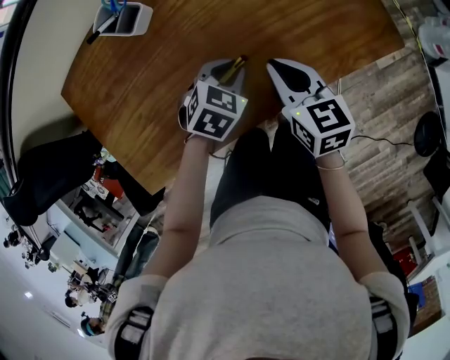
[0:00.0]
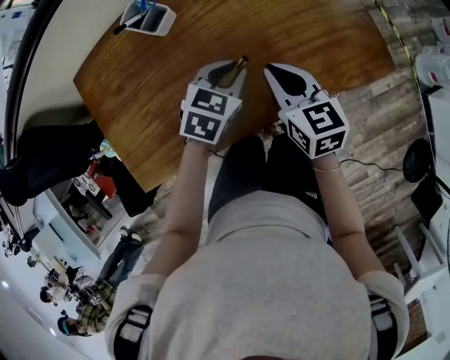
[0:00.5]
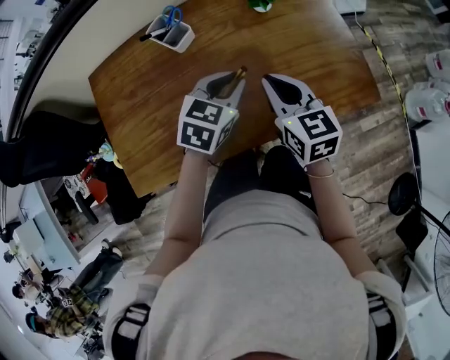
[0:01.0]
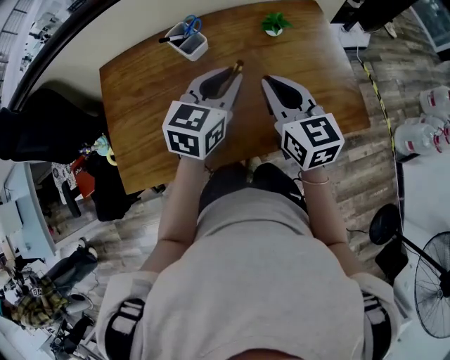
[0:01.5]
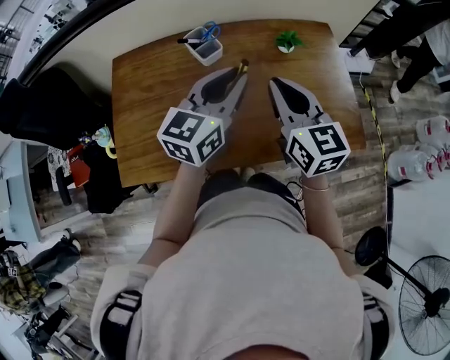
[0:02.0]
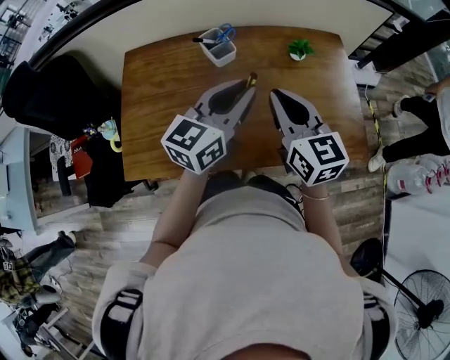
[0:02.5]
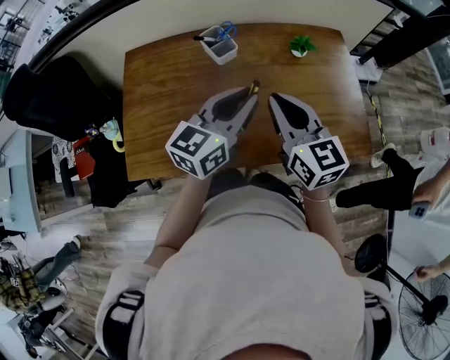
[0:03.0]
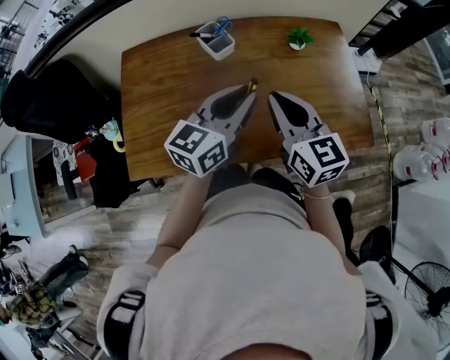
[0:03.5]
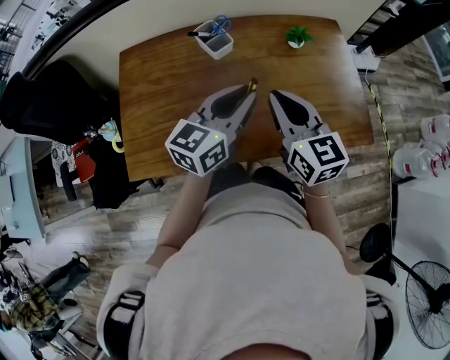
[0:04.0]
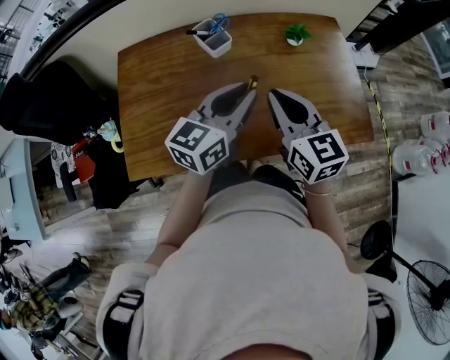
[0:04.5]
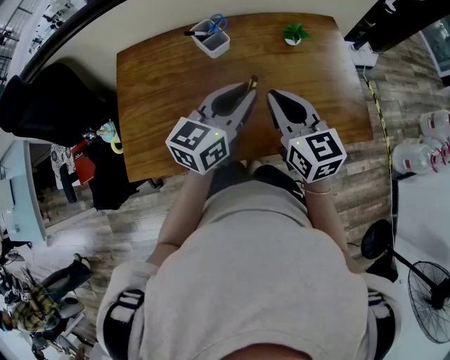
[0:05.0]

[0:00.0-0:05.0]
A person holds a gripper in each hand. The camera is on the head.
0:00.0 to 0:02.5: Both grippers move upward, roughly 25 cm. The left gripper tips its fingers upward by some 60 degrees. The right gripper swivels roughly 30 degrees.
0:02.5 to 0:05.0: The grippers make only small movements.

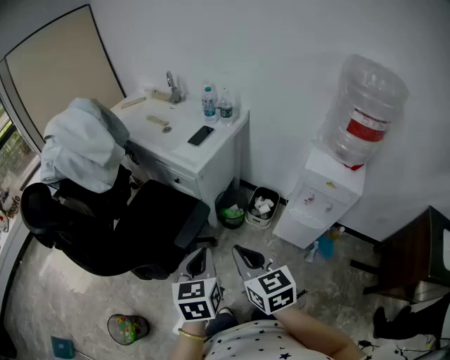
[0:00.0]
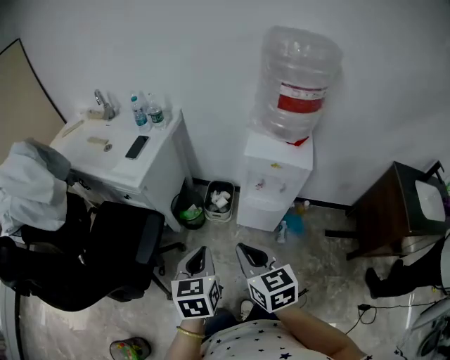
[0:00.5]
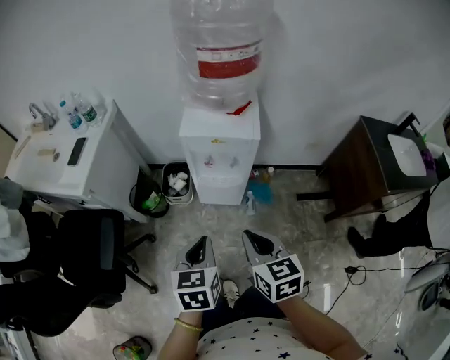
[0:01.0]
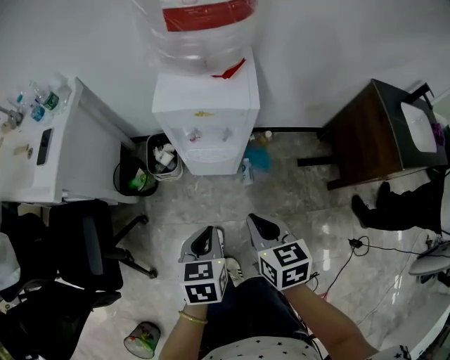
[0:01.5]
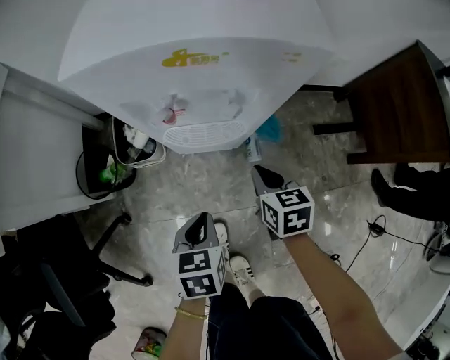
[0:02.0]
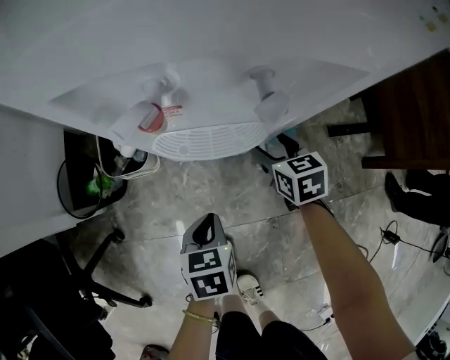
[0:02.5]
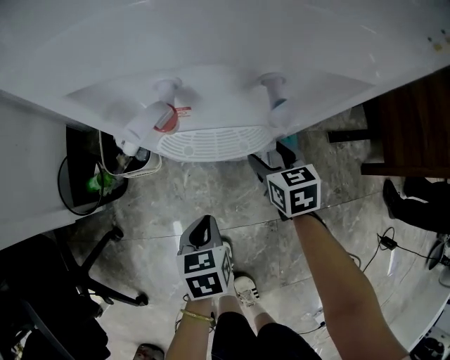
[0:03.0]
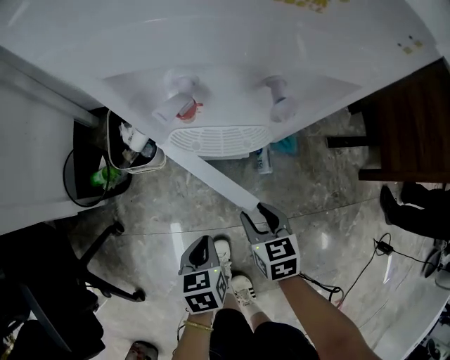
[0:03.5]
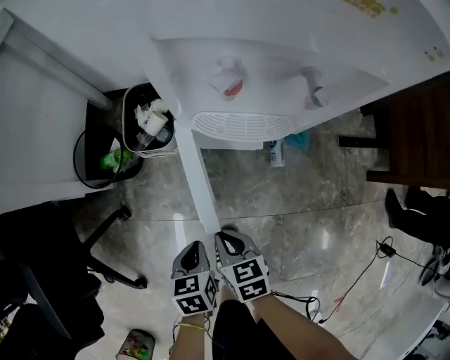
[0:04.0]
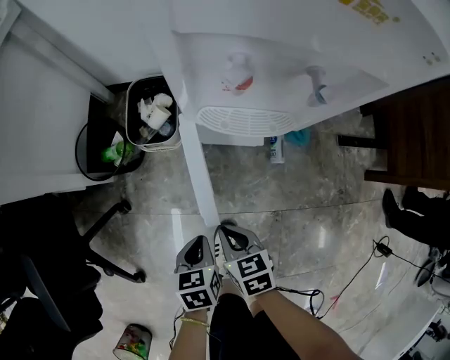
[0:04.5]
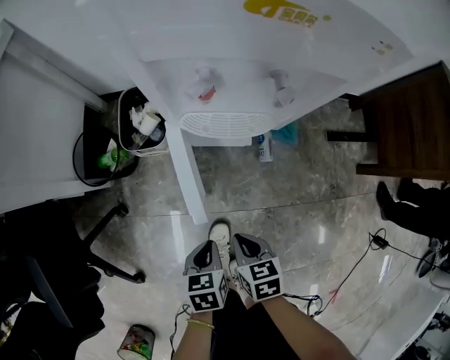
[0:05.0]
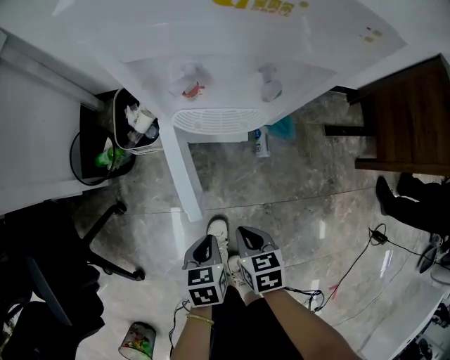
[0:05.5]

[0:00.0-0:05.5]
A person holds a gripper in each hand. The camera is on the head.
0:00.0 to 0:02.0: The left gripper moves downward, about 40 cm, and turns by about 50 degrees, while the right gripper changes place by about 70 cm, and rotates approximately 50 degrees.
0:02.0 to 0:03.5: The left gripper goes roughly 15 cm downward. The right gripper moves downward, backward and to the left, some 15 cm, and opens up.
0:03.5 to 0:05.5: The right gripper shifts some 10 cm backward, moves approximately 15 cm to the left and comes back, and closes; the left gripper moves backward, roughly 5 cm.

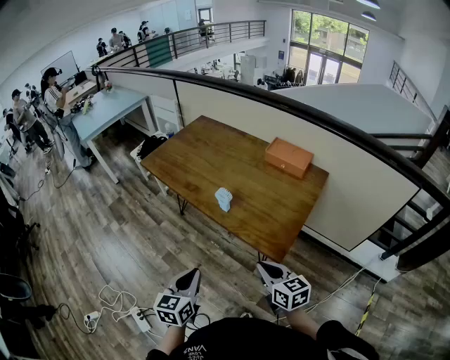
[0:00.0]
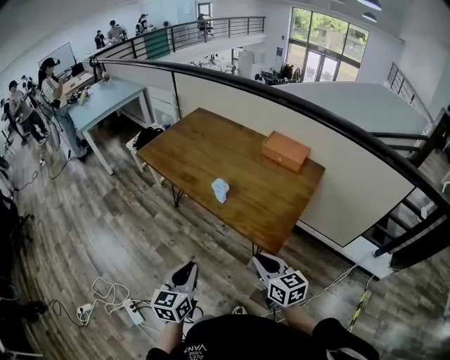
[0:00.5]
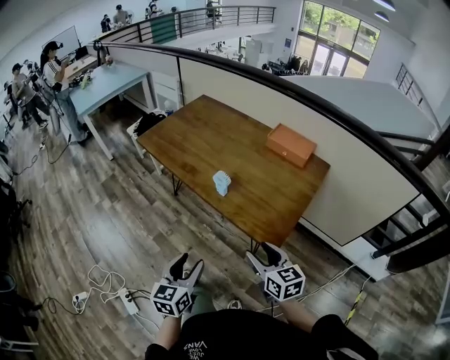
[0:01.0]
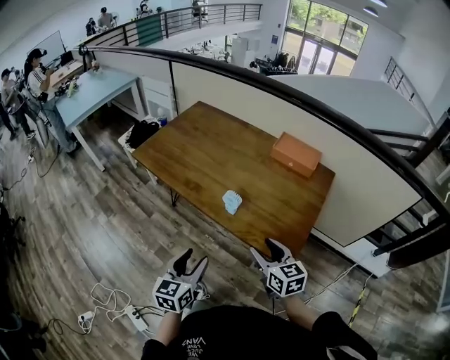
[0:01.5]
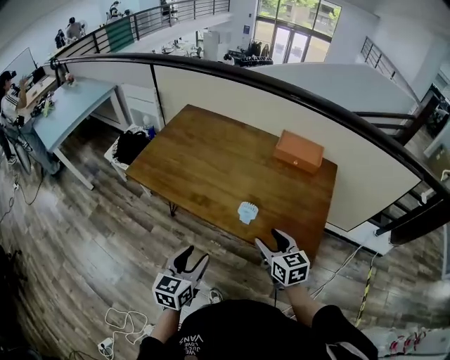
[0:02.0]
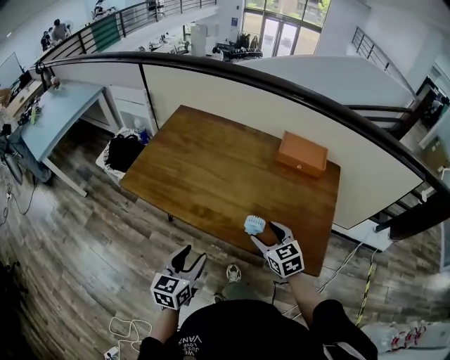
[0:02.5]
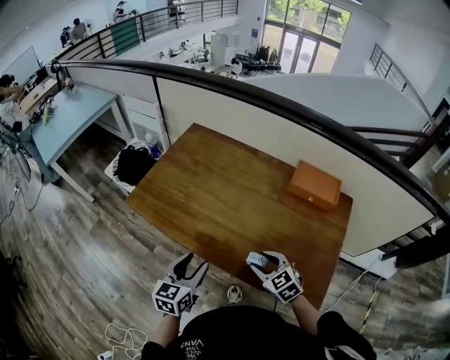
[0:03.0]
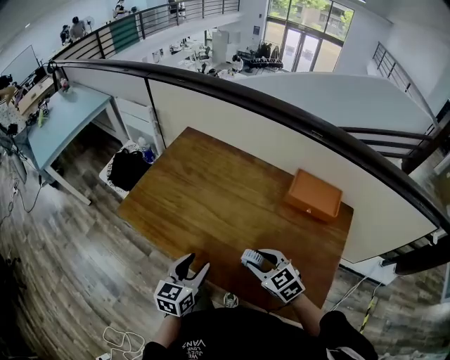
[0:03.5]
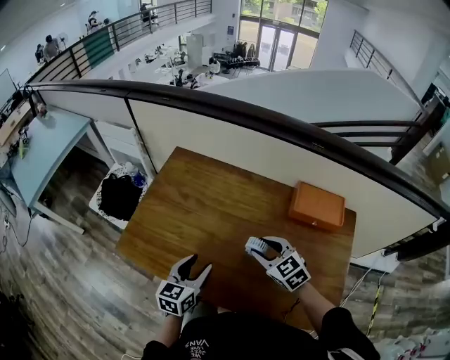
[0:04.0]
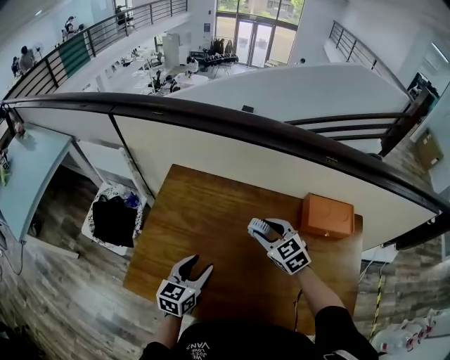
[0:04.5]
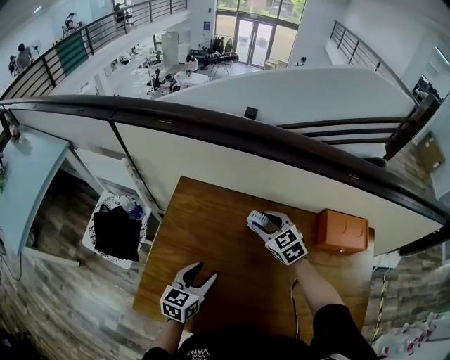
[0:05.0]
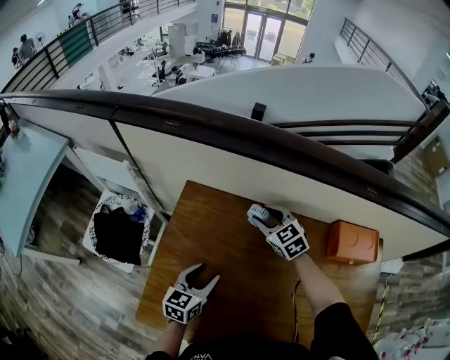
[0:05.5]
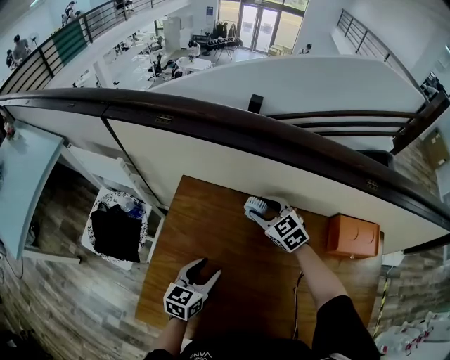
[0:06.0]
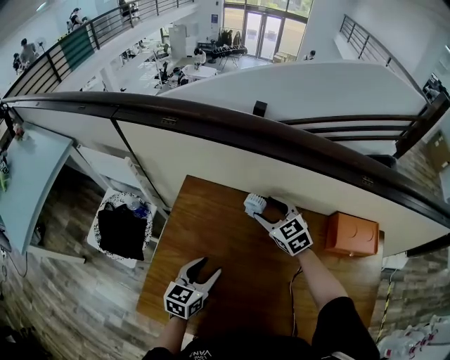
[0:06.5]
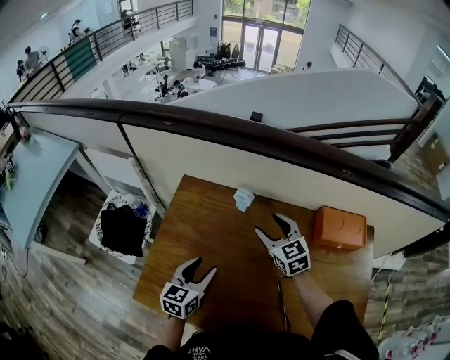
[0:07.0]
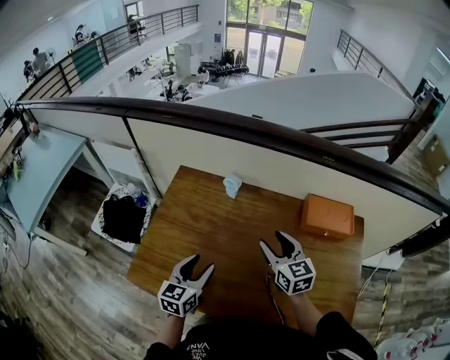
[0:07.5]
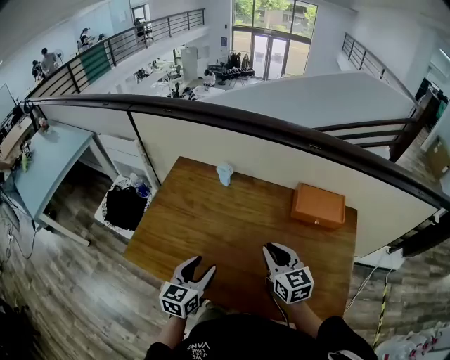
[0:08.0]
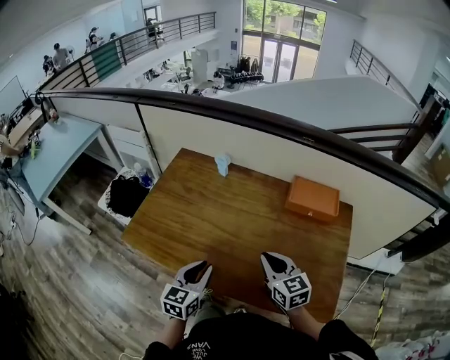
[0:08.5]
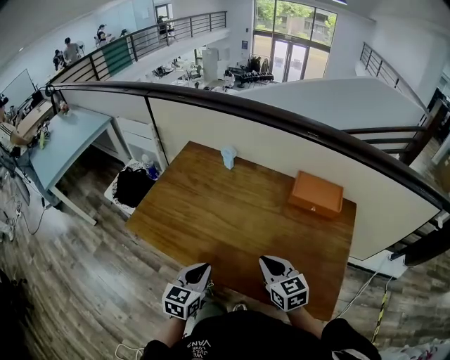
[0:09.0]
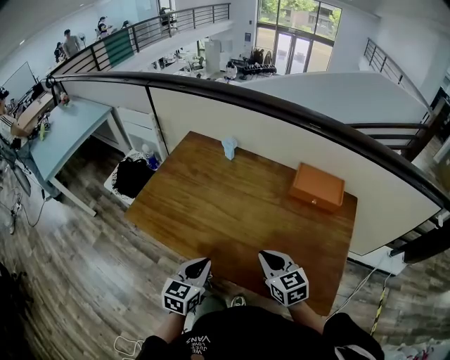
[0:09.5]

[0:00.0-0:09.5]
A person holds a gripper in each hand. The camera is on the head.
0:00.0 to 0:02.0: The two grippers go roughly 20 cm forward and to the left. The left gripper opens; the right gripper opens.
0:02.0 to 0:04.0: The two grippers go some 30 cm forward. The right gripper swivels about 30 degrees.
0:04.0 to 0:05.5: The right gripper is displaced forward by approximately 35 cm; the left gripper shifts some 25 cm forward and to the left.
0:05.5 to 0:07.5: The left gripper travels backward, upward and to the right by some 15 cm. Meanwhile the right gripper travels backward and to the right by approximately 25 cm, and turns by some 30 degrees.
0:07.5 to 0:09.5: The right gripper is displaced backward by roughly 25 cm, and closes. Meanwhile the left gripper shifts some 25 cm backward and to the right, and closes its fingers.

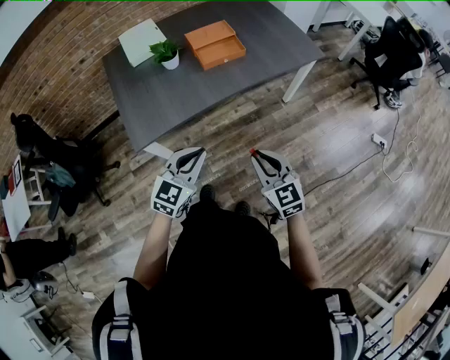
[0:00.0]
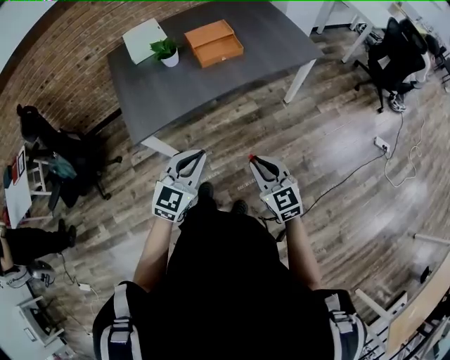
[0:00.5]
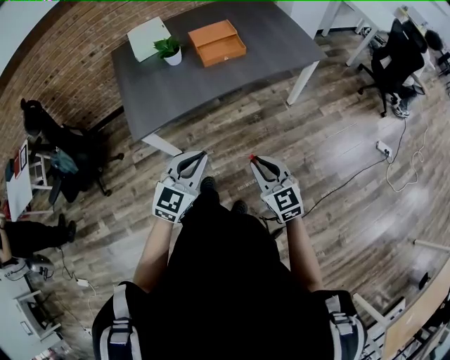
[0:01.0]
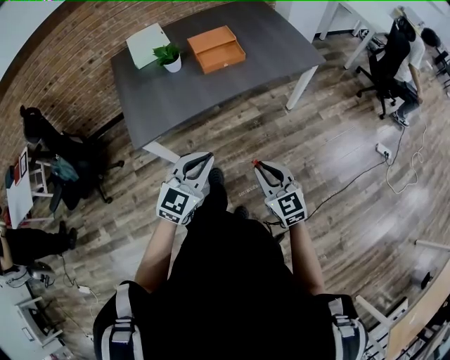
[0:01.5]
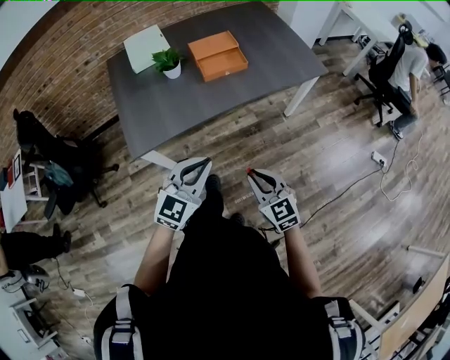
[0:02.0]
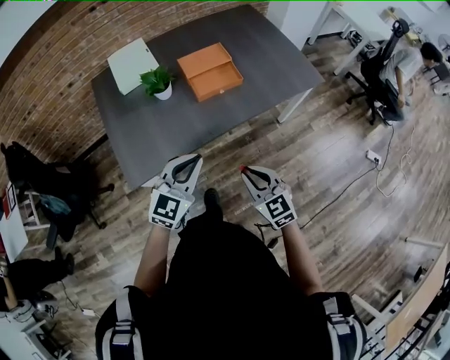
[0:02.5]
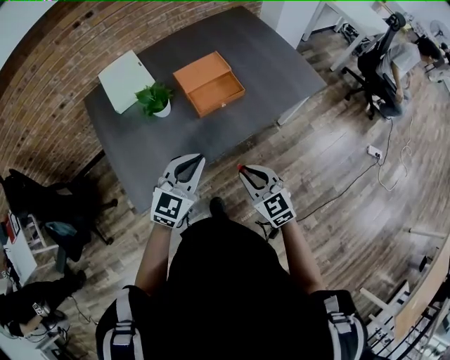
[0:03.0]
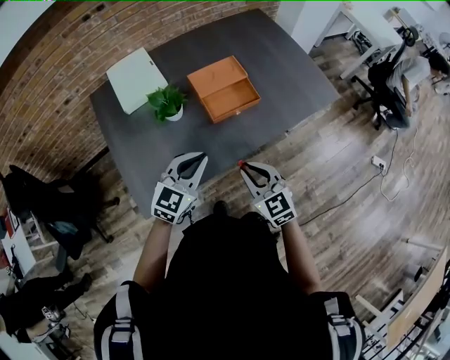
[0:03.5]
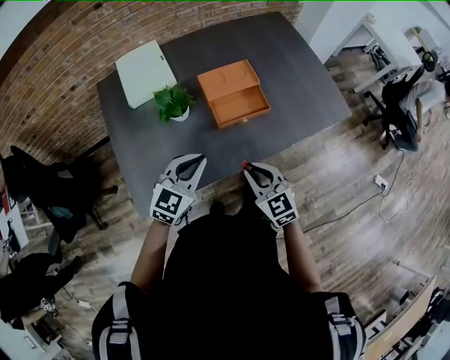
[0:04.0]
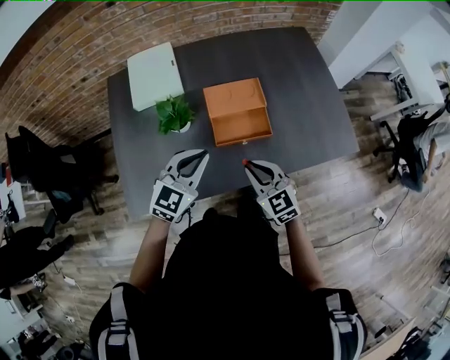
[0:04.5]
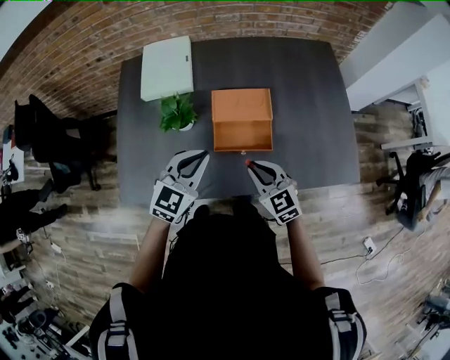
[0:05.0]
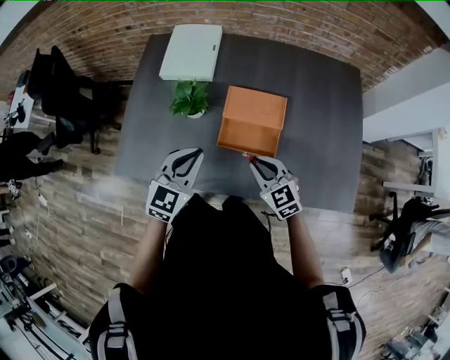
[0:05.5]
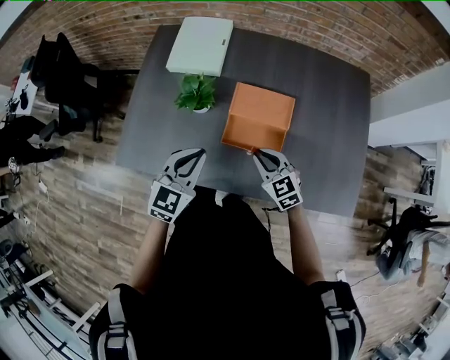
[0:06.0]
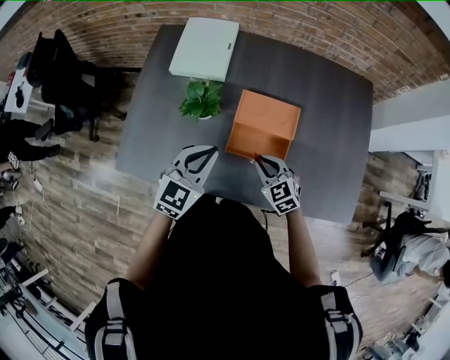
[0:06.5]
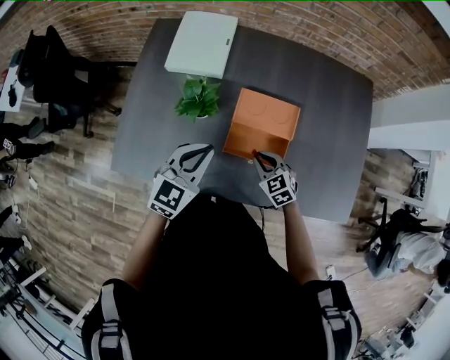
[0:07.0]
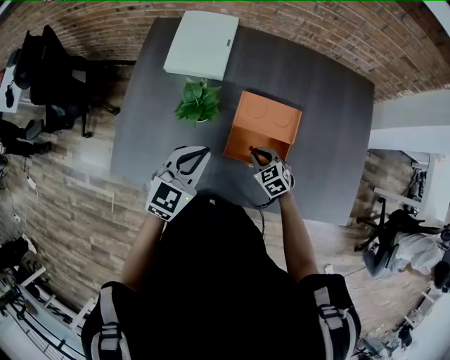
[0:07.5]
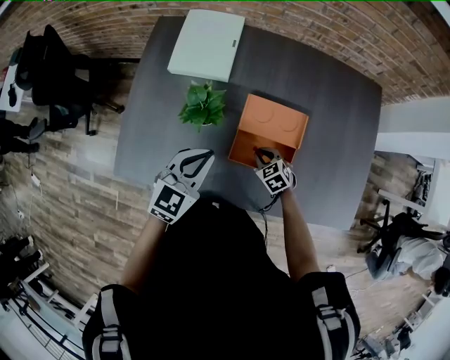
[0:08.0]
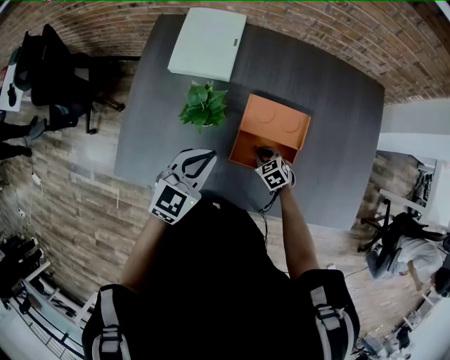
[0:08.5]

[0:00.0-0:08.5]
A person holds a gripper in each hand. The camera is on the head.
0:00.0 to 0:02.0: The left gripper heads to the right, covering roughly 5 cm.
0:02.0 to 0:04.0: Both grippers move forward, roughly 35 cm.
0:04.0 to 0:06.5: The left gripper changes place by approximately 15 cm, and changes its angle by roughly 30 degrees, while the right gripper shifts by some 25 cm, and rotates some 40 degrees.
0:06.5 to 0:08.5: The right gripper is displaced downward and forward by some 15 cm, and swivels some 20 degrees; the left gripper is displaced forward by about 5 cm.
